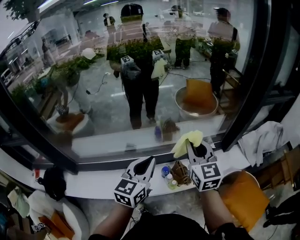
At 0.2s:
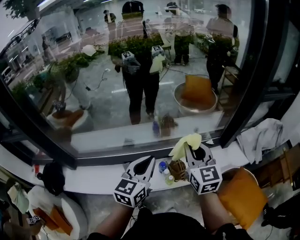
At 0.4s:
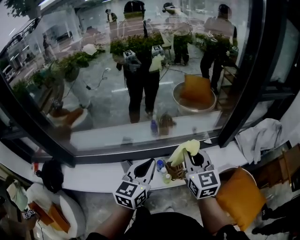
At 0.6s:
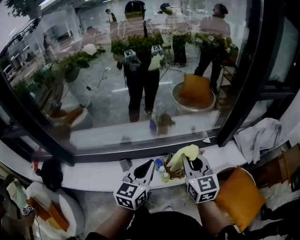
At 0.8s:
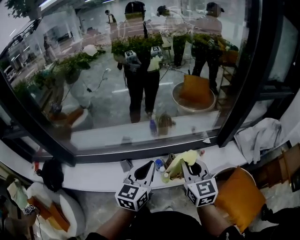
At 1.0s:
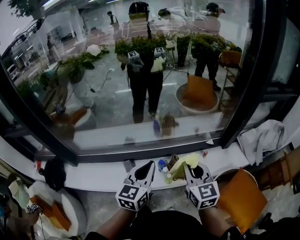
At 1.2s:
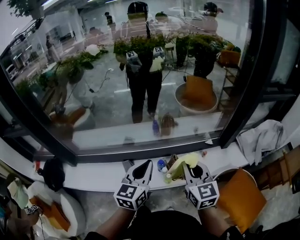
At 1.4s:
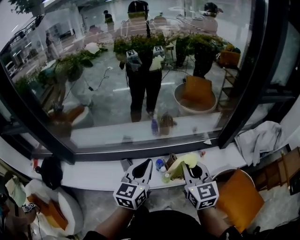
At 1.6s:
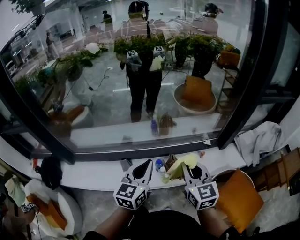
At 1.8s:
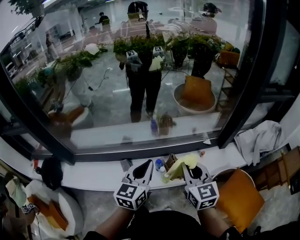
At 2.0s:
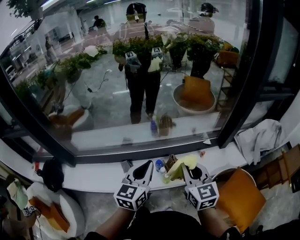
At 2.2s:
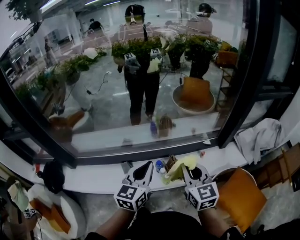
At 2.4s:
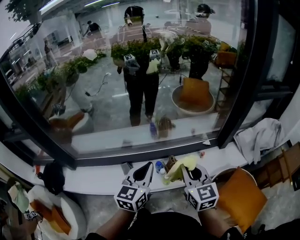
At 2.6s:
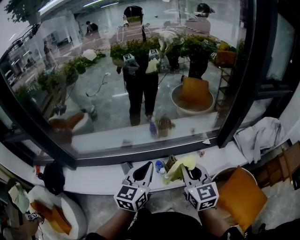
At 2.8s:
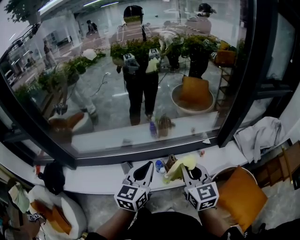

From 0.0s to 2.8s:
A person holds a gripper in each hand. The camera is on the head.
From 0.0s to 1.4s: The left gripper shifts by roughly 5 cm. Meanwhile the right gripper travels backward and downward by some 10 cm.
From 1.4s to 2.8s: The grippers stay close to where they were, moving slightly.

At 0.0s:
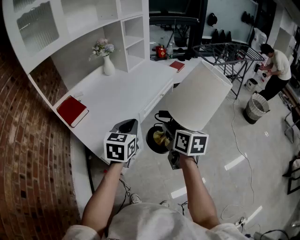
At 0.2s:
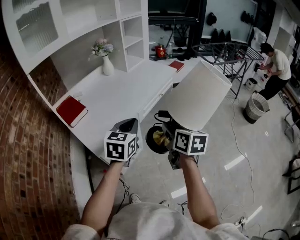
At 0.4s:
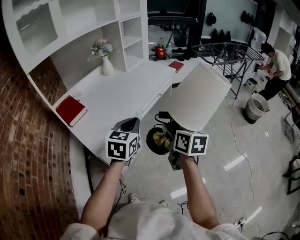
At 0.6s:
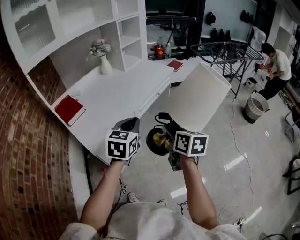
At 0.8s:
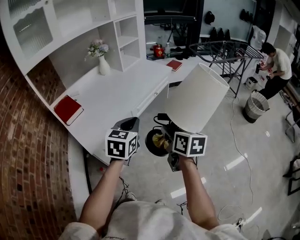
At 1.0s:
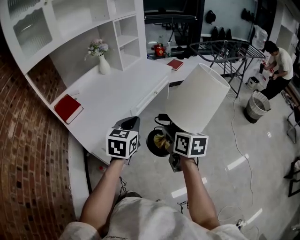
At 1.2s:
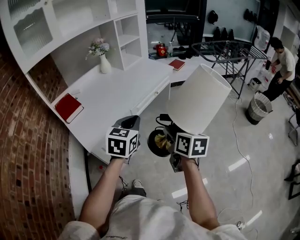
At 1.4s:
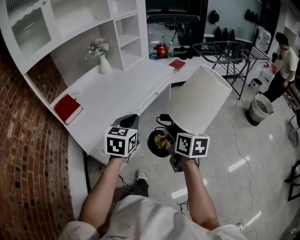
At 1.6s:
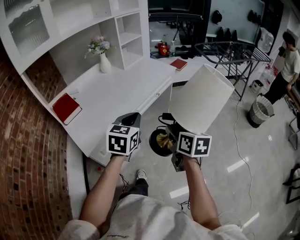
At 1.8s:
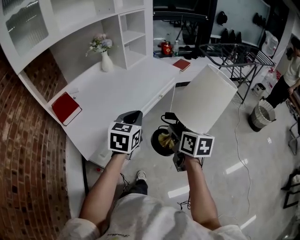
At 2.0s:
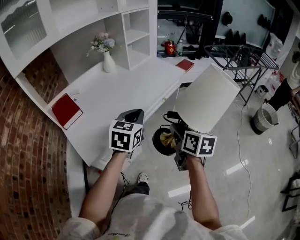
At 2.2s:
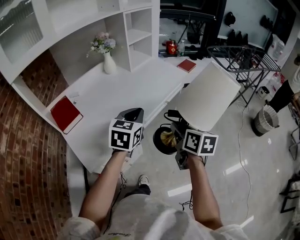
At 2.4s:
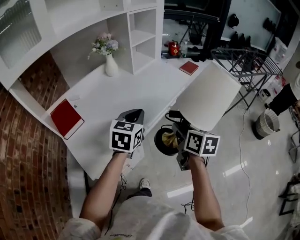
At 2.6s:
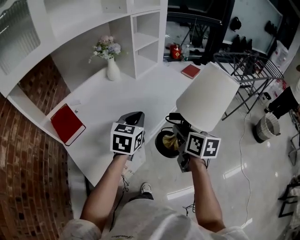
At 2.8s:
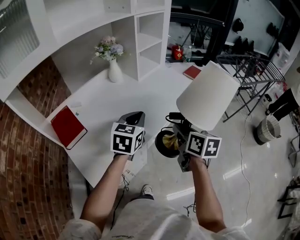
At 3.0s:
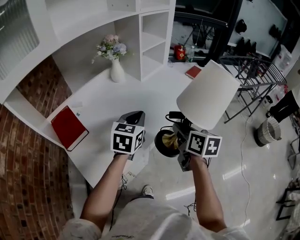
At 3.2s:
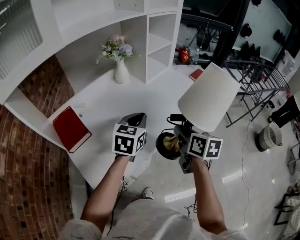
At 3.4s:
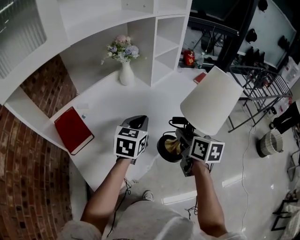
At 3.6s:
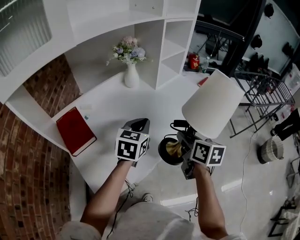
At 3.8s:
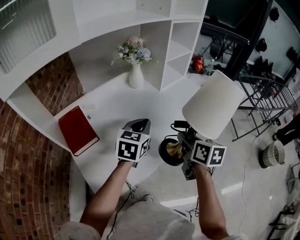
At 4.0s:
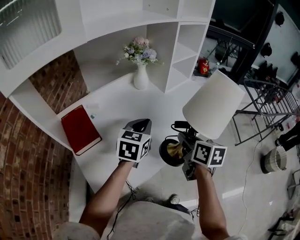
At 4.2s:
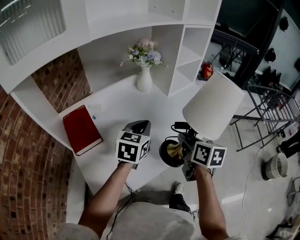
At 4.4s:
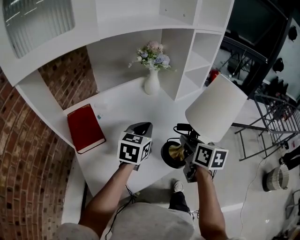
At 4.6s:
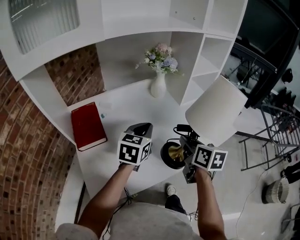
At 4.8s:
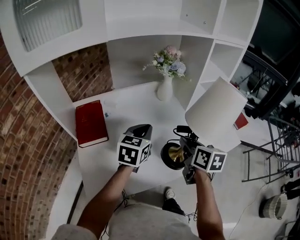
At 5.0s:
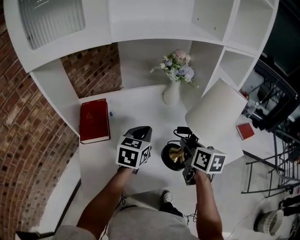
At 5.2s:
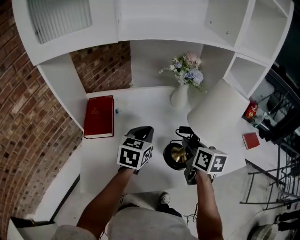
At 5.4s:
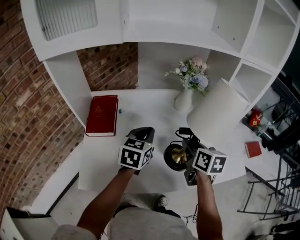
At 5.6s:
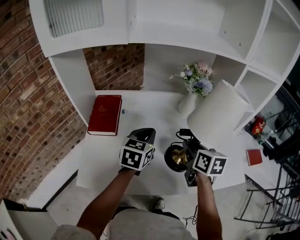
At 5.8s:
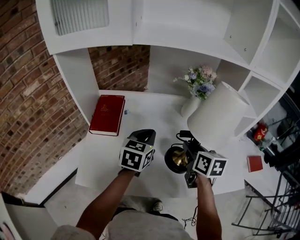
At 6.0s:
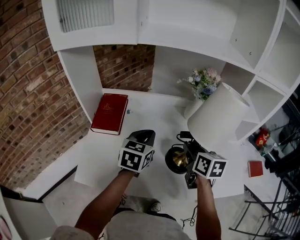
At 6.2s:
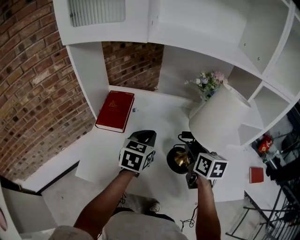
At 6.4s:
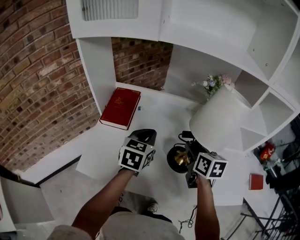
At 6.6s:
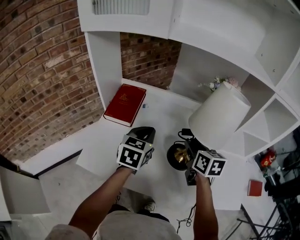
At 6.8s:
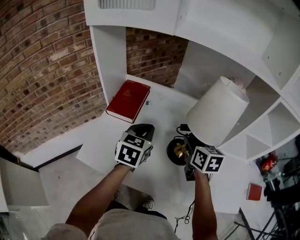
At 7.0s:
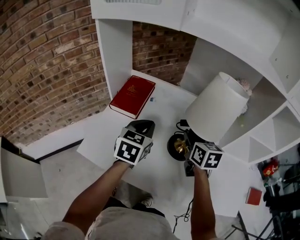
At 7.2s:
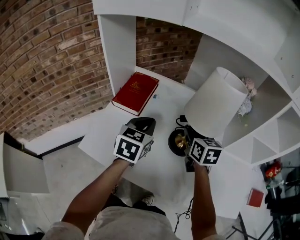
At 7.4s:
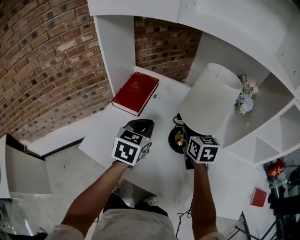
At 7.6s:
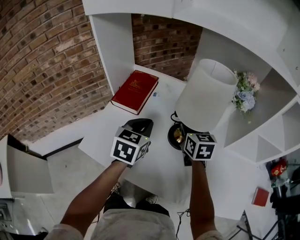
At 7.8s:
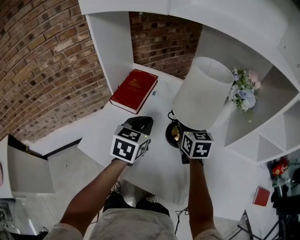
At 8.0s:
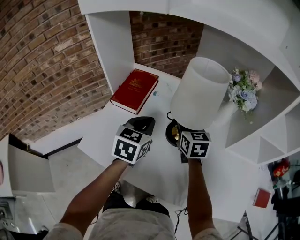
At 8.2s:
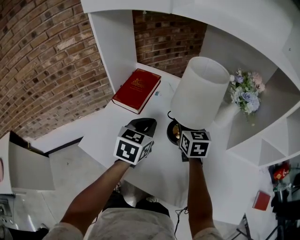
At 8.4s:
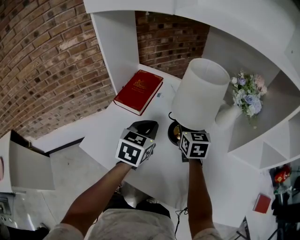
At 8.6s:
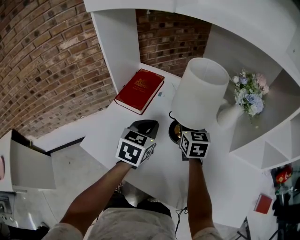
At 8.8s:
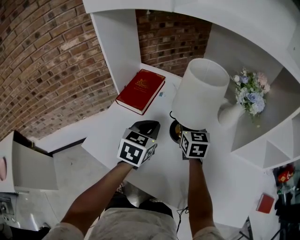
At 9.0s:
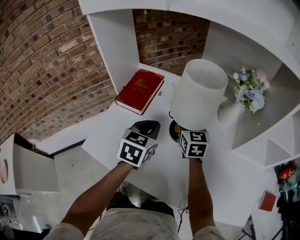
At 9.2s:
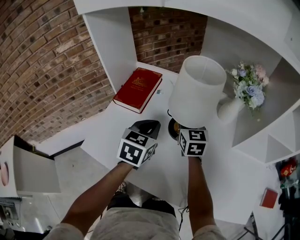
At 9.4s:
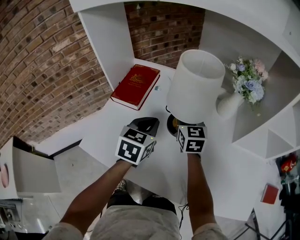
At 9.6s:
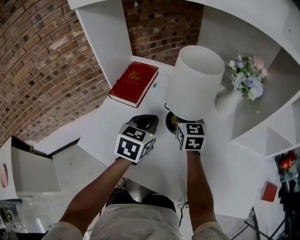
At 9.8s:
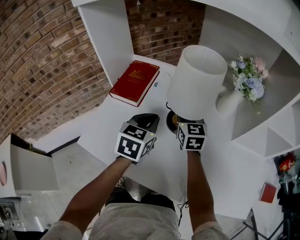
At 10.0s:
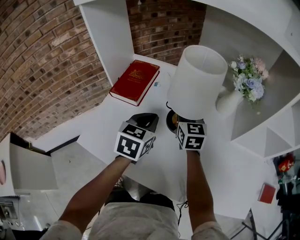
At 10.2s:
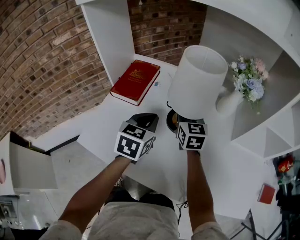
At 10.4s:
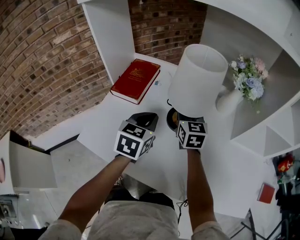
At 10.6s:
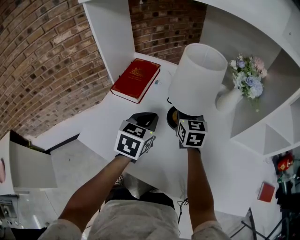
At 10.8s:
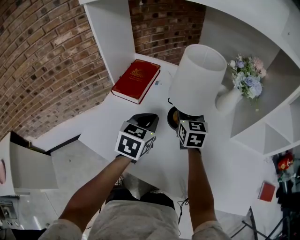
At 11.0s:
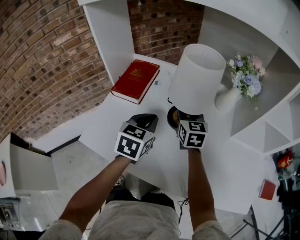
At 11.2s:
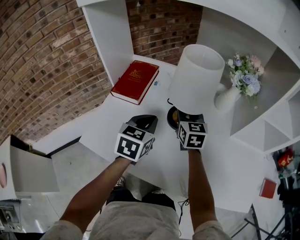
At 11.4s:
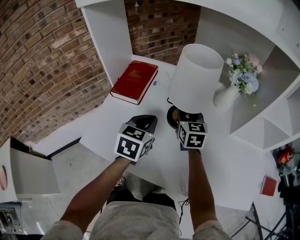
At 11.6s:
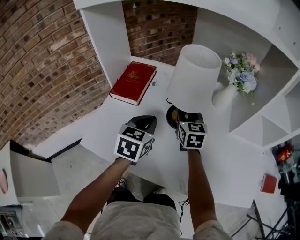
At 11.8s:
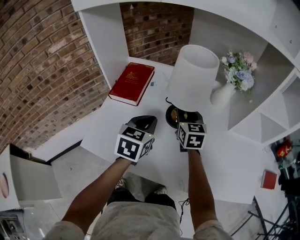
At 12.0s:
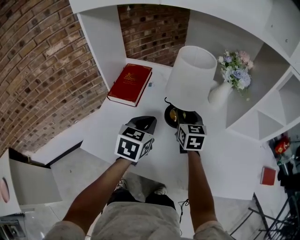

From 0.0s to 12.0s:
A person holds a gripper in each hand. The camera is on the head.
From 0.0s to 1.6s: Both grippers move to the right, roughly 10 cm.
From 1.6s to 3.0s: The right gripper travels forward by about 25 cm. The left gripper is displaced forward and to the left by some 25 cm.
From 3.0s to 4.4s: The left gripper shifts some 15 cm to the left and forward. The right gripper moves forward and to the left, approximately 15 cm.
From 4.4s to 6.0s: The left gripper ends up approximately 5 cm from where it was, and changes its angle by approximately 40 degrees. The right gripper shifts by roughly 15 cm, and swivels roughly 40 degrees.
From 6.0s to 7.6s: The left gripper moves to the left, some 5 cm. The right gripper goes some 15 cm forward and to the left, and swivels approximately 30 degrees.
From 7.6s to 9.0s: The right gripper shifts by about 5 cm.
From 9.0s to 12.0s: The grippers move only a little.

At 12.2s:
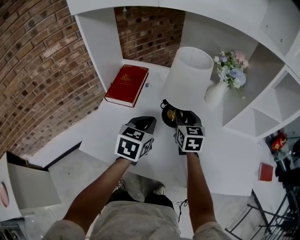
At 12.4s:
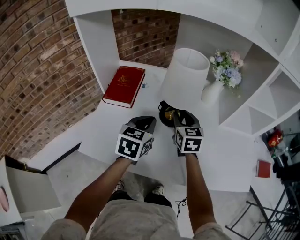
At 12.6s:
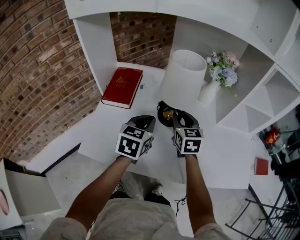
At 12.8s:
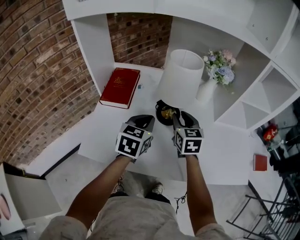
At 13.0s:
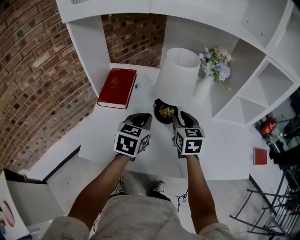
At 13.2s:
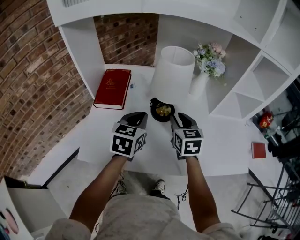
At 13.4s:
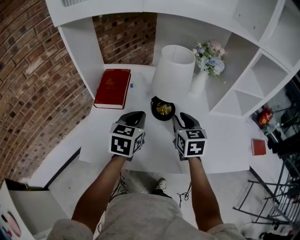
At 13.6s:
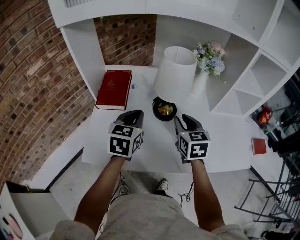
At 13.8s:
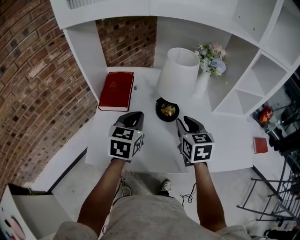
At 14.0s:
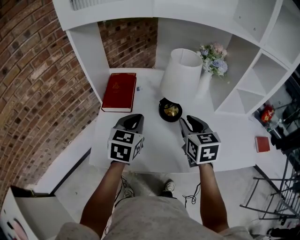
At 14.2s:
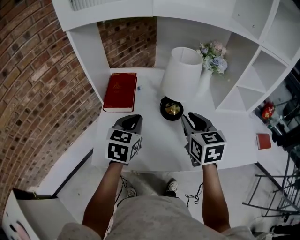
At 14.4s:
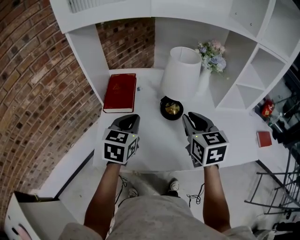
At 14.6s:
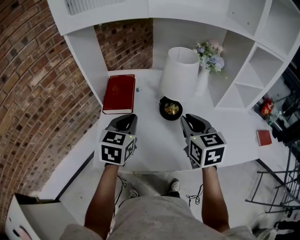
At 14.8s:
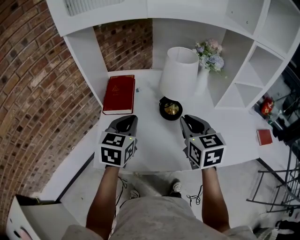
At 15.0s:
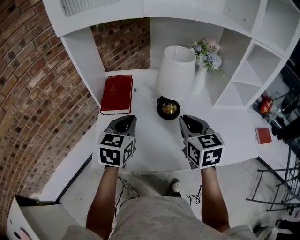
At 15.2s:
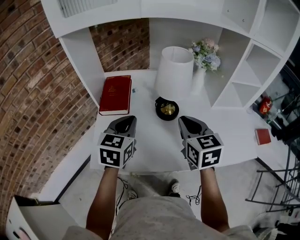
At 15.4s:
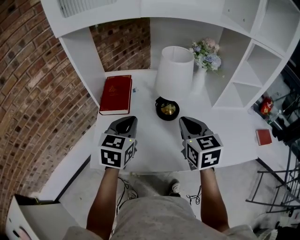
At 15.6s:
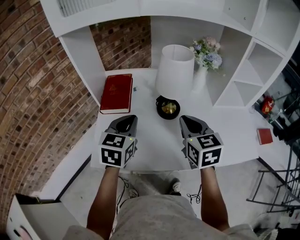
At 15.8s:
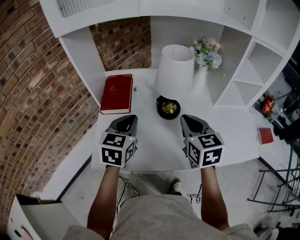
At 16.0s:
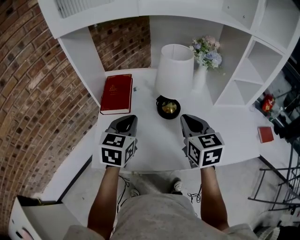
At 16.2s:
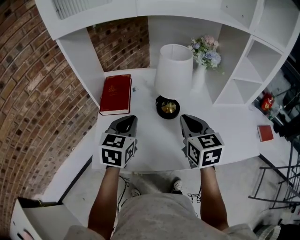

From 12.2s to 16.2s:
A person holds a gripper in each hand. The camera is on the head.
From 12.2s to 13.6s: The right gripper shifts approximately 10 cm backward. The left gripper changes place by about 5 cm.
From 13.6s to 14.8s: The left gripper moves to the left, approximately 5 cm, while the right gripper travels upward by about 5 cm.
From 14.8s to 16.2s: The grippers move only a little.

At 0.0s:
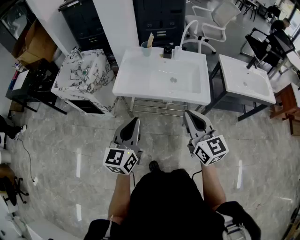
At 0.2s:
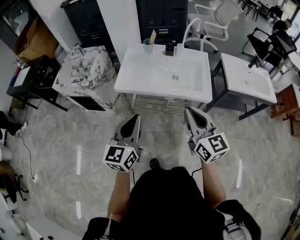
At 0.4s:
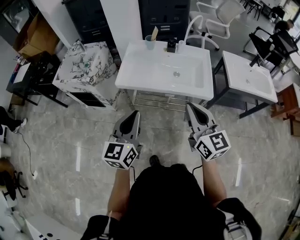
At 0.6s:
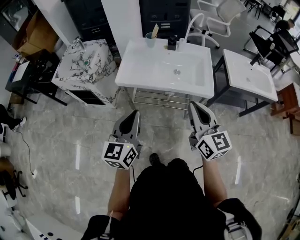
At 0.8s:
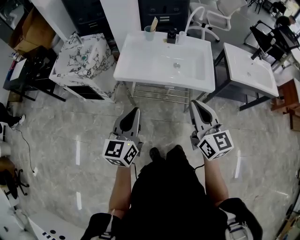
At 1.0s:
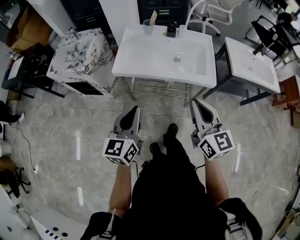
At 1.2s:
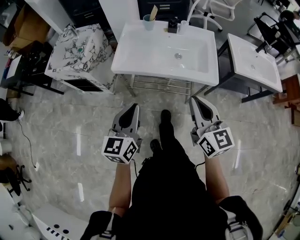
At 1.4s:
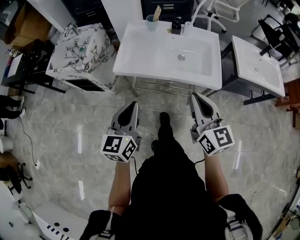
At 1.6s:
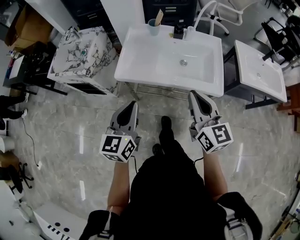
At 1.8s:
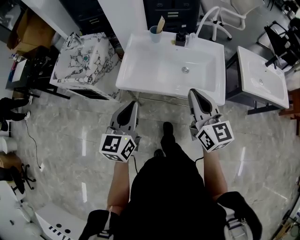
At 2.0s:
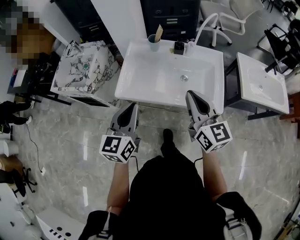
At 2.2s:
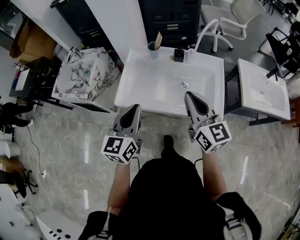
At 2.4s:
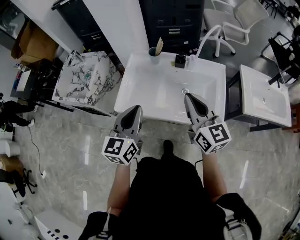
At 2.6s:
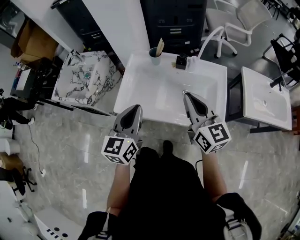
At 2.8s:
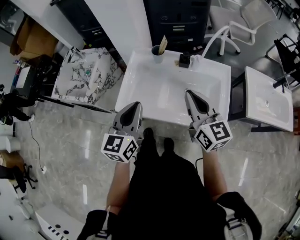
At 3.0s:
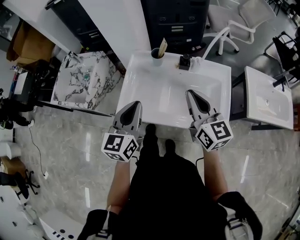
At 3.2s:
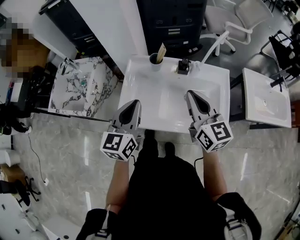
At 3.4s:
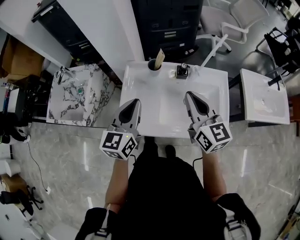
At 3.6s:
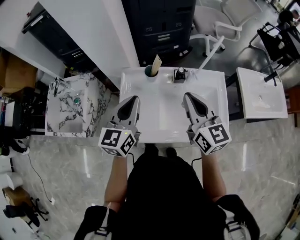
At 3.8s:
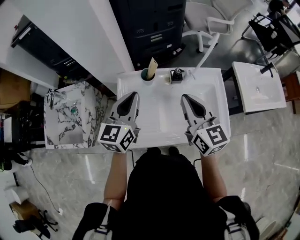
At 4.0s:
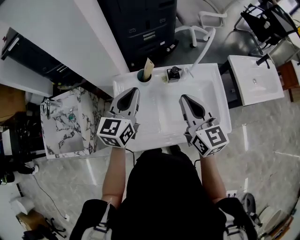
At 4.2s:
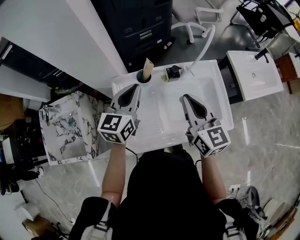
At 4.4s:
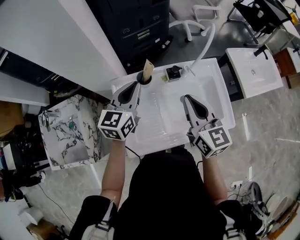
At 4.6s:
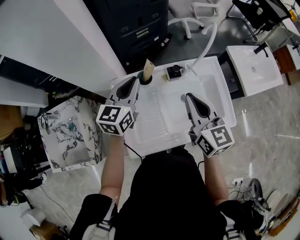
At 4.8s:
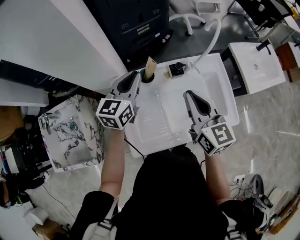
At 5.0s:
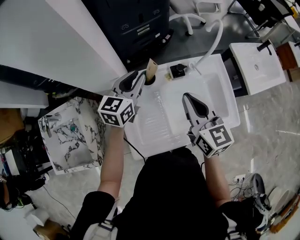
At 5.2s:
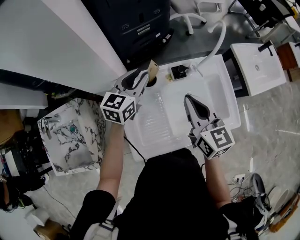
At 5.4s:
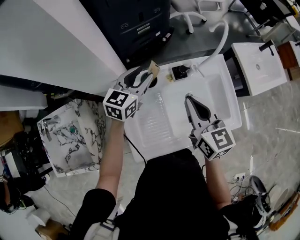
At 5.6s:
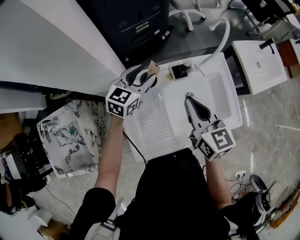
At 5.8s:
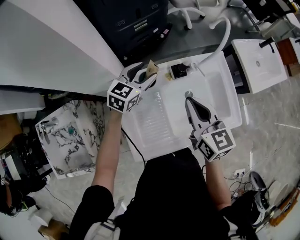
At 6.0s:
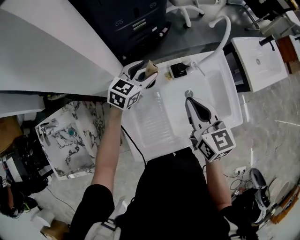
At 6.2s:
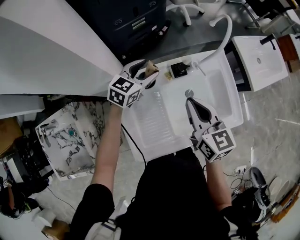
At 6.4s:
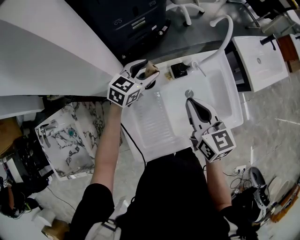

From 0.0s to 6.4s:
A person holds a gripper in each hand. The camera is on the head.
From 0.0s to 1.6s: The grippers both shift forward by roughly 10 cm.
From 1.6s to 3.2s: Both grippers travel together forward, approximately 25 cm.
From 3.2s to 4.8s: The right gripper moves about 10 cm, and rotates approximately 20 degrees. The left gripper ends up some 25 cm from where it was, and swivels approximately 30 degrees.
From 4.8s to 6.4s: The right gripper moves downward, some 5 cm. Meanwhile the left gripper heads downward and forward, covering roughly 15 cm, changes its angle by about 30 degrees, and opens its fingers.
